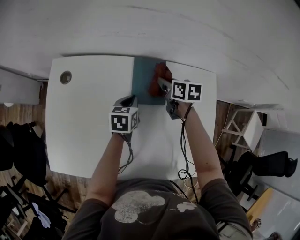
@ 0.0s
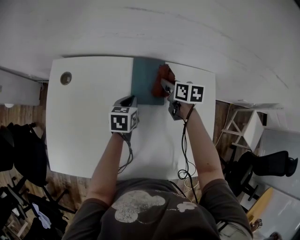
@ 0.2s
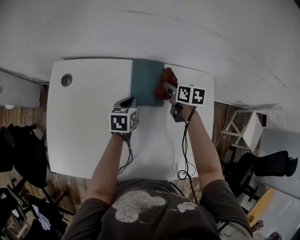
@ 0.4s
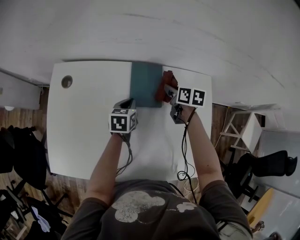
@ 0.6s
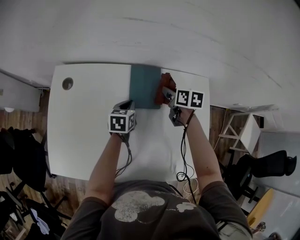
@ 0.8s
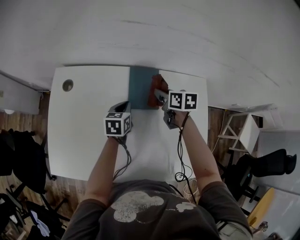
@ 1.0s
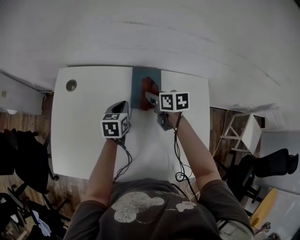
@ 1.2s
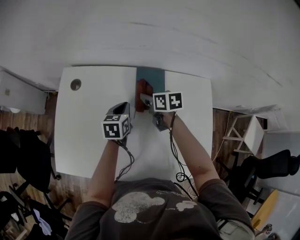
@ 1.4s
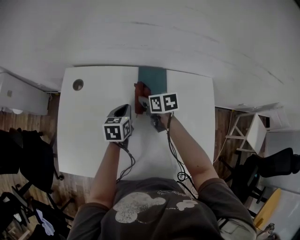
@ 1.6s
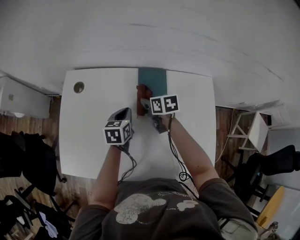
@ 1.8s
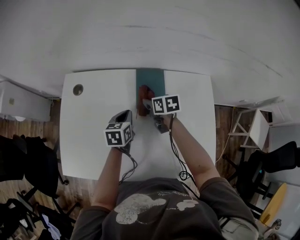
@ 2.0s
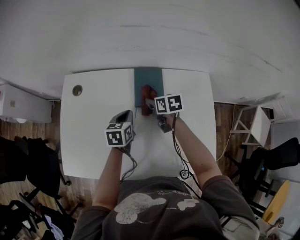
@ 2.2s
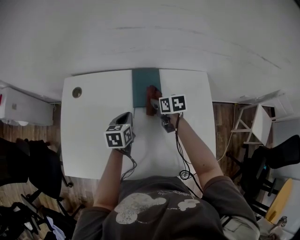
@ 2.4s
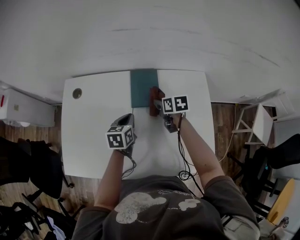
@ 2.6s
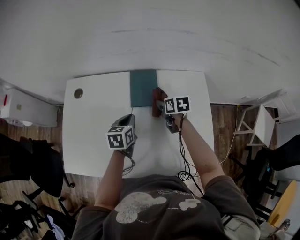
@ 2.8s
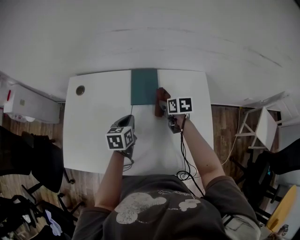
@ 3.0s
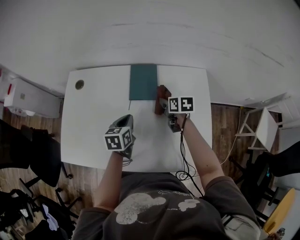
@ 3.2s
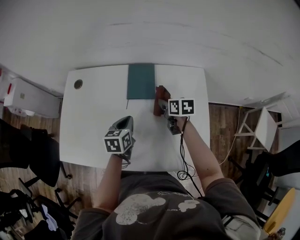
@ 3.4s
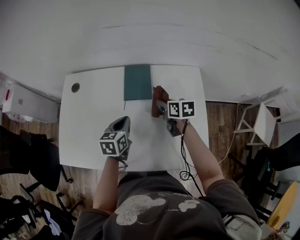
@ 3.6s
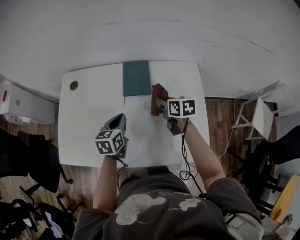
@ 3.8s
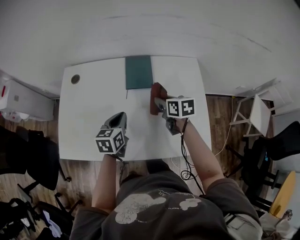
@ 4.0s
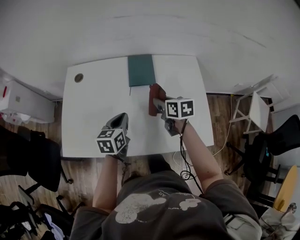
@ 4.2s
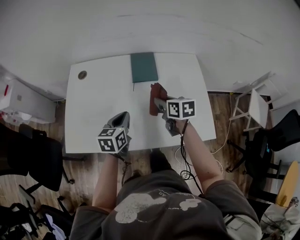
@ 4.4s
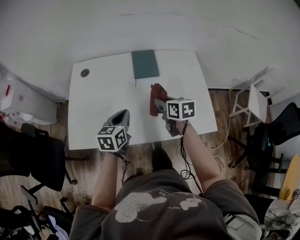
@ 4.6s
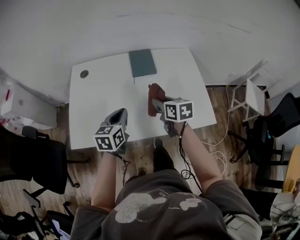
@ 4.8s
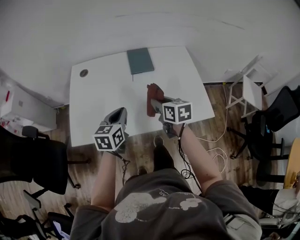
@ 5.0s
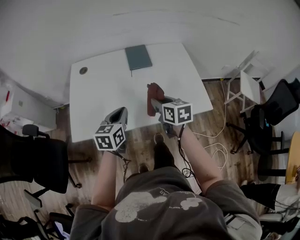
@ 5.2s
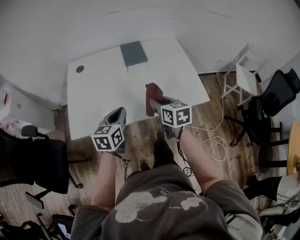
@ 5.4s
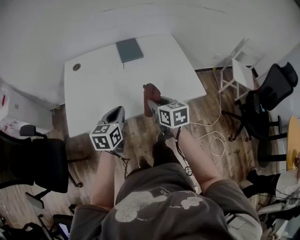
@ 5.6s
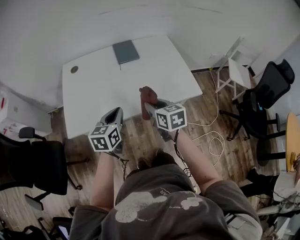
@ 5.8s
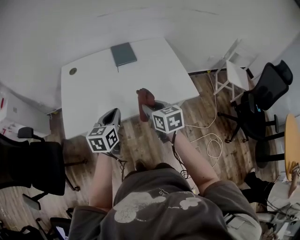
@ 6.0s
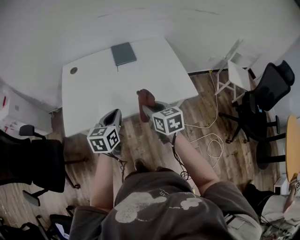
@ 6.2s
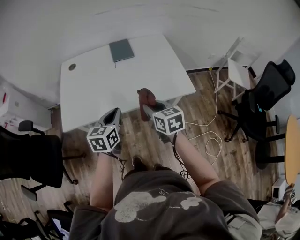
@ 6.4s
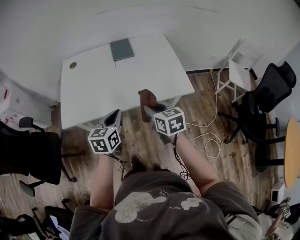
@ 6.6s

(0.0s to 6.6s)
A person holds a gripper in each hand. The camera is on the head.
0.0s - 1.6s: The right gripper is displaced to the left and backward by roughly 15 cm, while the left gripper moves to the left, approximately 5 cm.
1.6s - 3.2s: The left gripper moves backward and to the right, about 10 cm. The right gripper moves to the right and backward, roughly 15 cm.
3.2s - 5.0s: The two grippers go roughly 30 cm backward, to the left and upward. The left gripper rotates roughly 20 degrees.
5.0s - 6.6s: The right gripper travels backward by some 20 cm; the left gripper travels backward and to the right by approximately 20 cm.

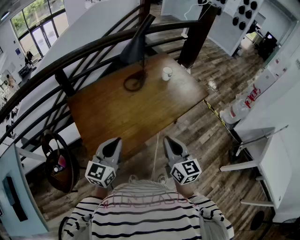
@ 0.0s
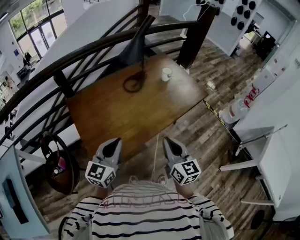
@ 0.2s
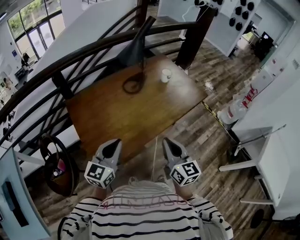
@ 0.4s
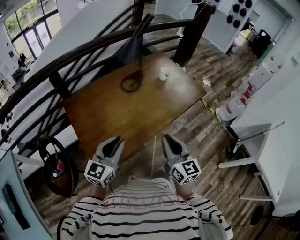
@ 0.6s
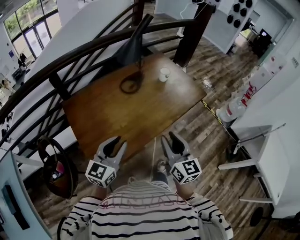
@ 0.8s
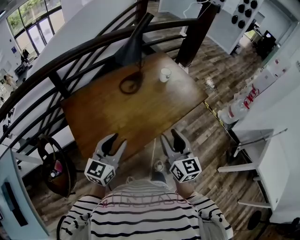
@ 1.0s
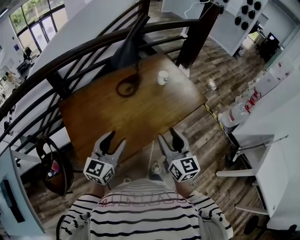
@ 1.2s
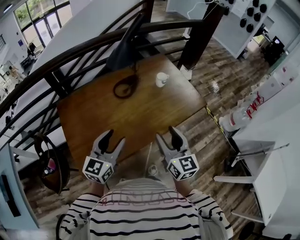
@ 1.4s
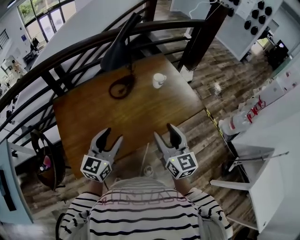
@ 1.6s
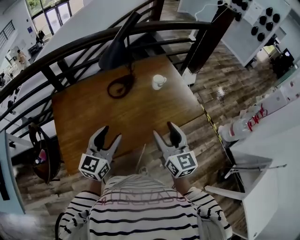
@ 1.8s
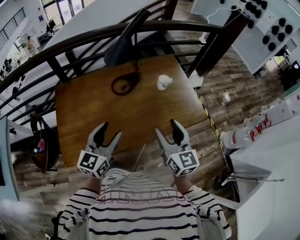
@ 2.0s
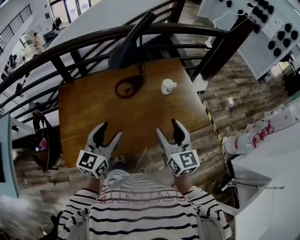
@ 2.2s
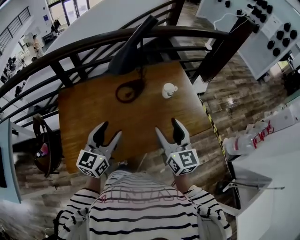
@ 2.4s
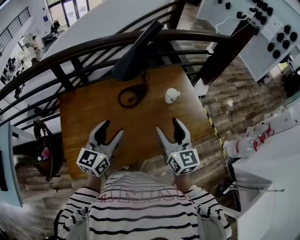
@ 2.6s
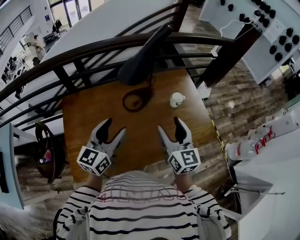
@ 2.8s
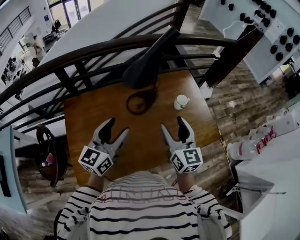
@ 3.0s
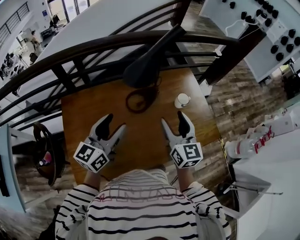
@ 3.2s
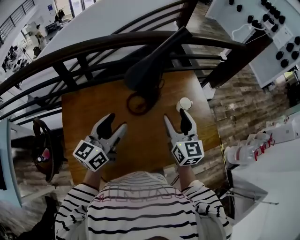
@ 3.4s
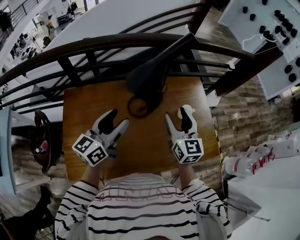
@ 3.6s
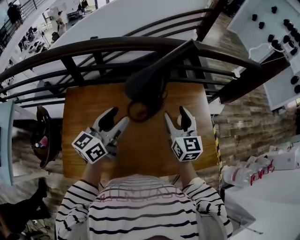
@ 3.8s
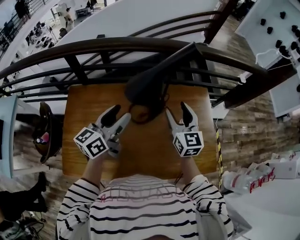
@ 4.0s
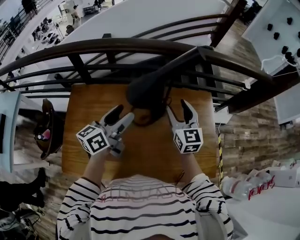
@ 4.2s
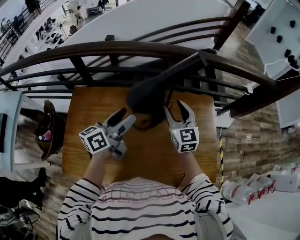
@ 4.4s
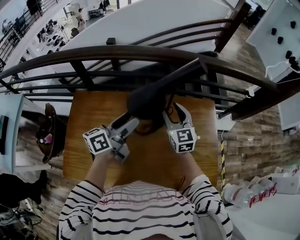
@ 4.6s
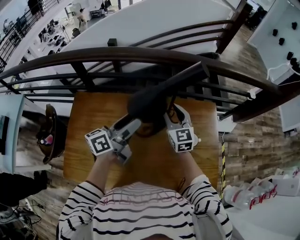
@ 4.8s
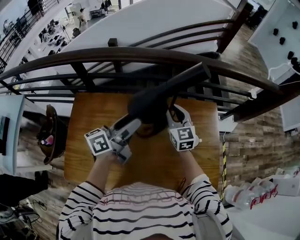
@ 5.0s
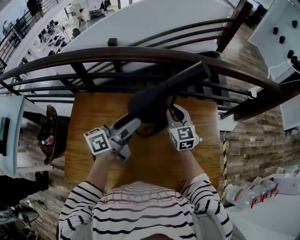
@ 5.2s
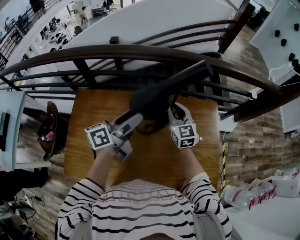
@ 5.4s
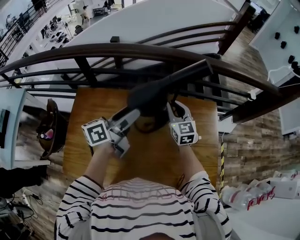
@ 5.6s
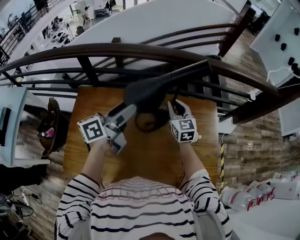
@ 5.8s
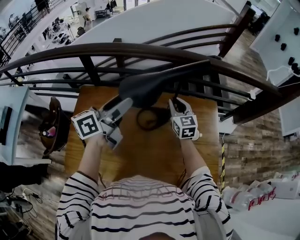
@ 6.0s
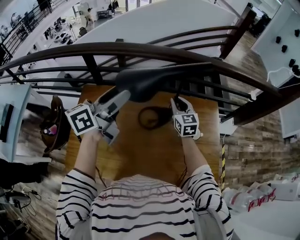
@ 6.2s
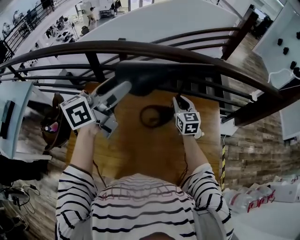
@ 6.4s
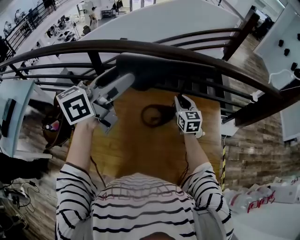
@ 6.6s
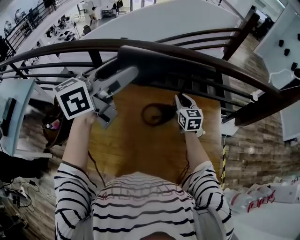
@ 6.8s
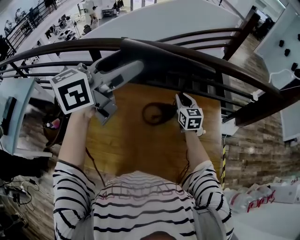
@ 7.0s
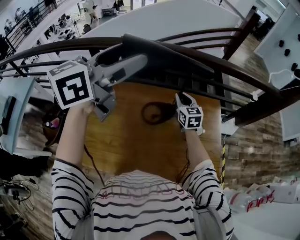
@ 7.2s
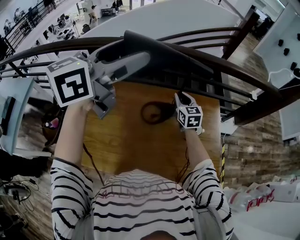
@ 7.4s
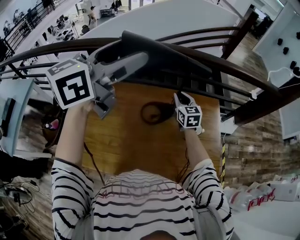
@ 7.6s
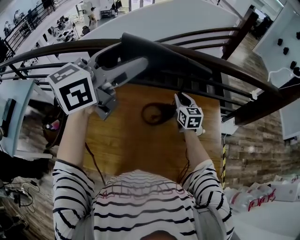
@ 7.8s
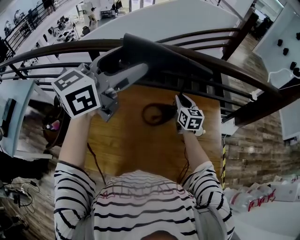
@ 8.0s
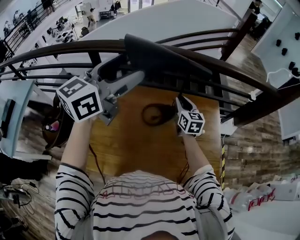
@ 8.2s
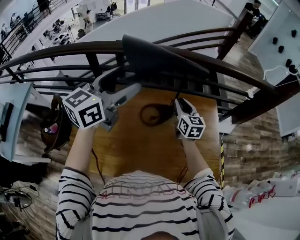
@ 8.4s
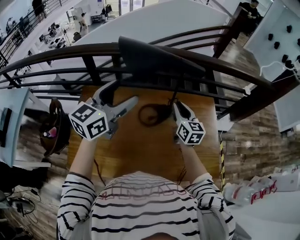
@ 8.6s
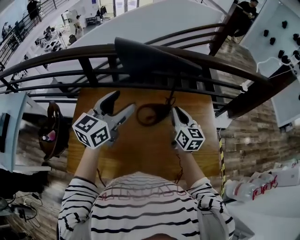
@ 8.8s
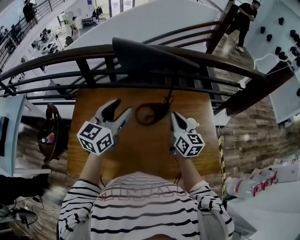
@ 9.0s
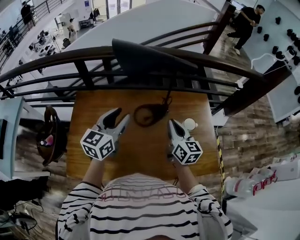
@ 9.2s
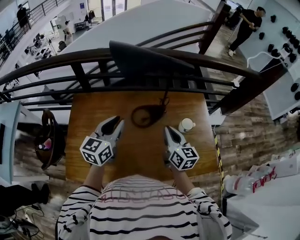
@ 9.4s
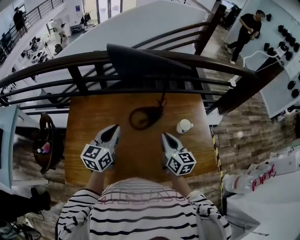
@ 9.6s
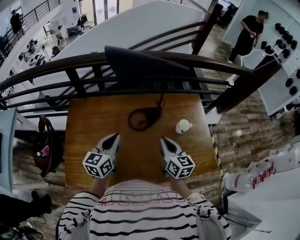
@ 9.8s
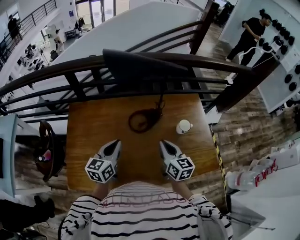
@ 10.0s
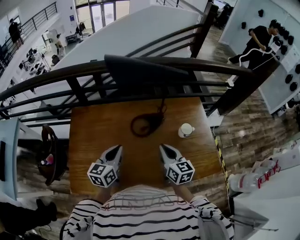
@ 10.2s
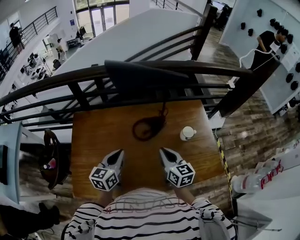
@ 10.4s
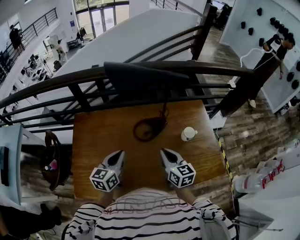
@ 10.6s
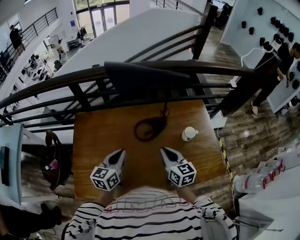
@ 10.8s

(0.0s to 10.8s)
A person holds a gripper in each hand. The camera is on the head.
0.0s - 1.6s: Both grippers move forward and to the right, roughly 20 cm. The left gripper opens; the right gripper opens its fingers.
1.6s - 3.0s: Both grippers travel together forward, some 20 cm.
3.0s - 4.6s: The grippers both shift forward by approximately 25 cm. The right gripper changes its angle by roughly 30 degrees; the left gripper swivels approximately 40 degrees.
4.6s - 6.2s: The right gripper closes its fingers; the left gripper goes about 15 cm upward and to the left.
6.2s - 7.8s: The left gripper moves upward, roughly 15 cm, and changes its angle by about 30 degrees.
7.8s - 9.2s: The right gripper is displaced backward by some 15 cm, while the left gripper is displaced downward by some 25 cm, and closes up.
9.2s - 10.8s: The left gripper shifts roughly 10 cm downward and backward, and closes up, while the right gripper is displaced backward by about 5 cm.

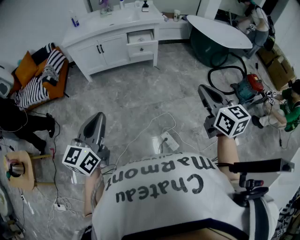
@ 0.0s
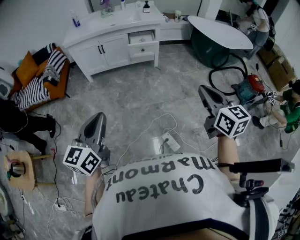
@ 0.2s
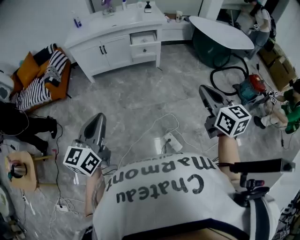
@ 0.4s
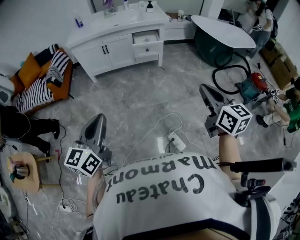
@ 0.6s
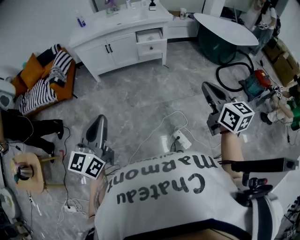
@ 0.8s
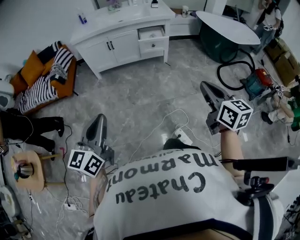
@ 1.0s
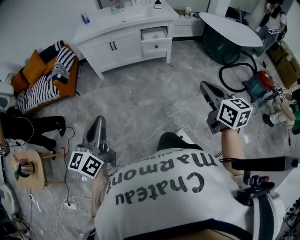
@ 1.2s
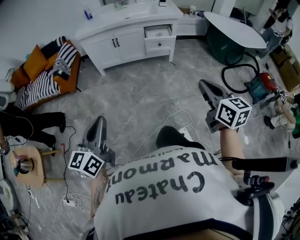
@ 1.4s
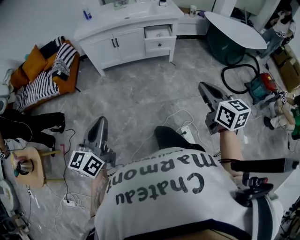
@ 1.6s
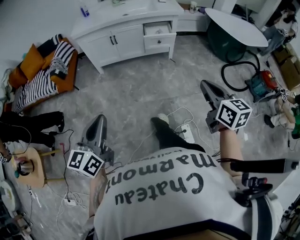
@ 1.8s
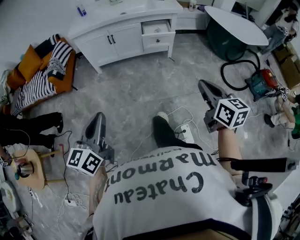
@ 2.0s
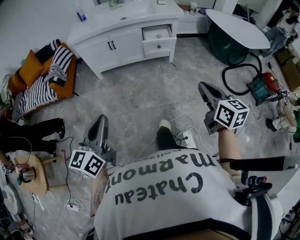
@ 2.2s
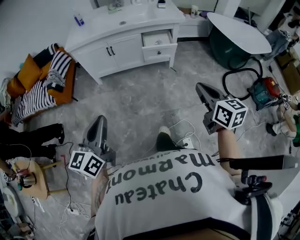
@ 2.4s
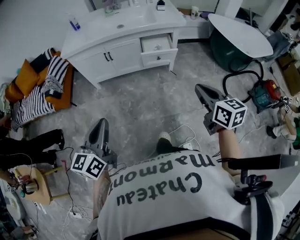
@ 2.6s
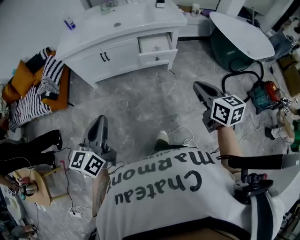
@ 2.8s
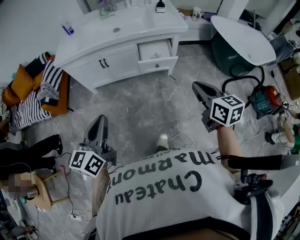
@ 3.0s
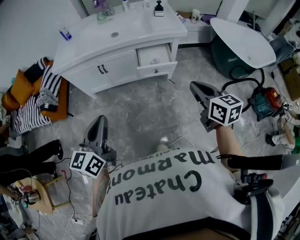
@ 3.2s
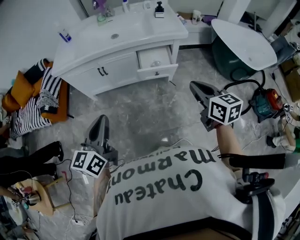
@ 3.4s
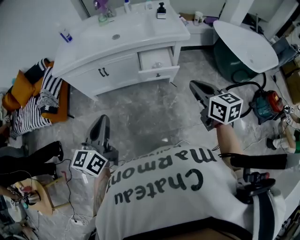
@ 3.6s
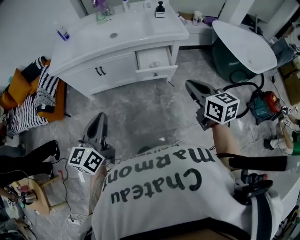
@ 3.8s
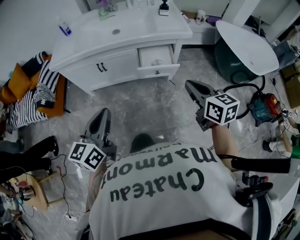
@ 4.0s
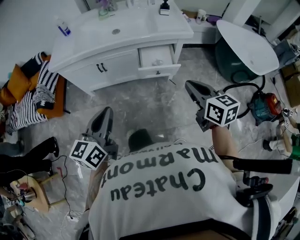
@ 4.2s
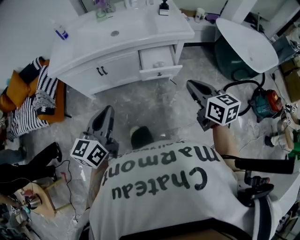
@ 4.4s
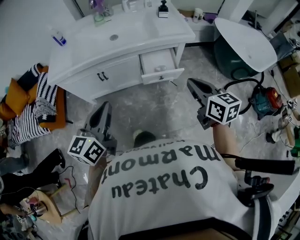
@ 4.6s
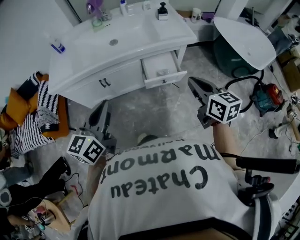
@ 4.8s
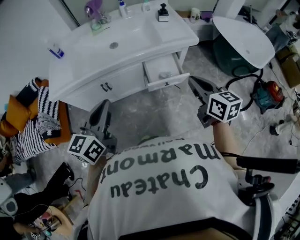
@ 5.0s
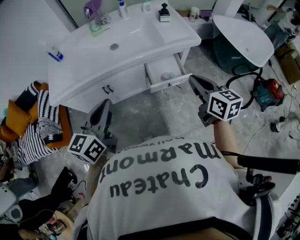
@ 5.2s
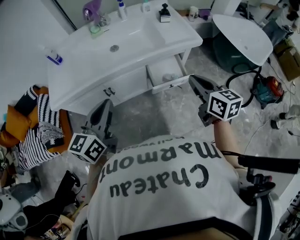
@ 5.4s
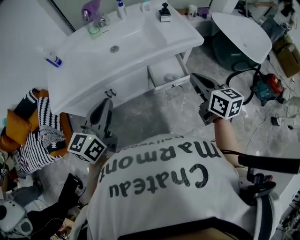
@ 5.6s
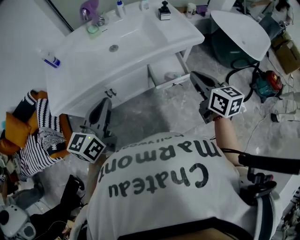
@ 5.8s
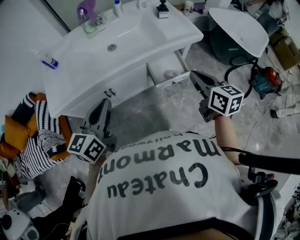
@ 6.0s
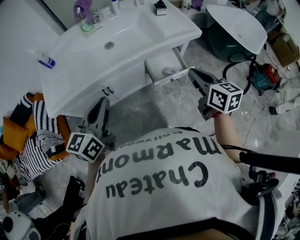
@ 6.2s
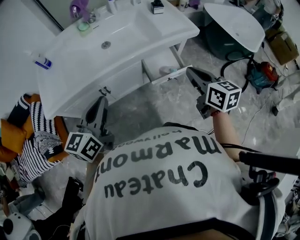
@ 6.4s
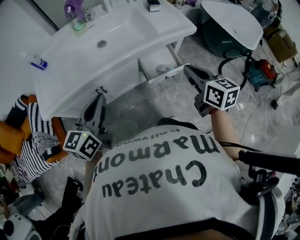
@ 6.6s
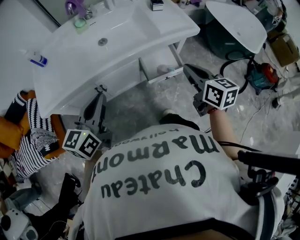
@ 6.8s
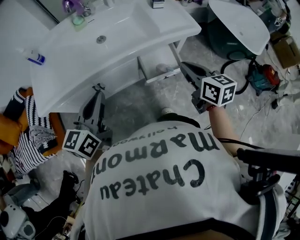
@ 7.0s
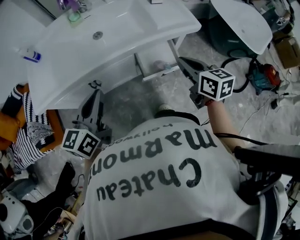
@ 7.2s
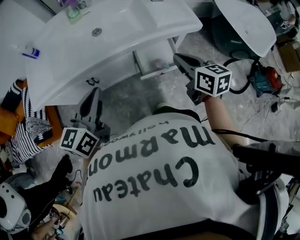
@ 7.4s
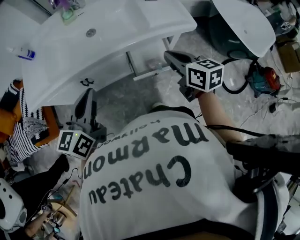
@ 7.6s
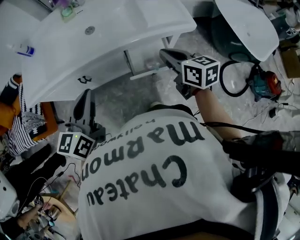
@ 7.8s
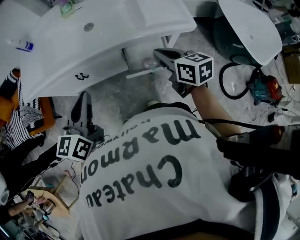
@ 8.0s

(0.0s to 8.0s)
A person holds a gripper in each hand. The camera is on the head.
0.0s - 1.6s: The left gripper shifts some 10 cm to the left, while the right gripper moves to the left and forward, about 10 cm.
1.6s - 3.2s: Both grippers move forward, some 40 cm.
3.2s - 4.8s: The right gripper travels forward and to the left by some 15 cm; the left gripper heads forward, covering some 20 cm.
4.8s - 6.4s: The right gripper moves to the left and forward, roughly 10 cm, while the left gripper shifts some 15 cm forward and to the left.
6.4s - 8.0s: The right gripper travels forward and downward by about 15 cm, and rotates about 30 degrees, while the left gripper heads to the right, covering roughly 10 cm, and swivels approximately 20 degrees.
